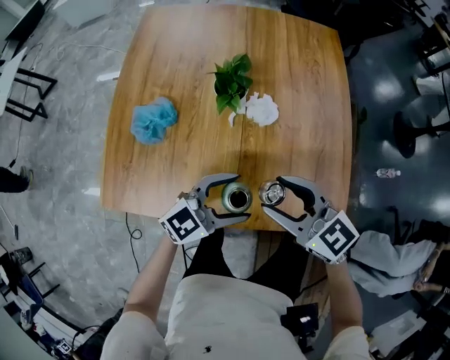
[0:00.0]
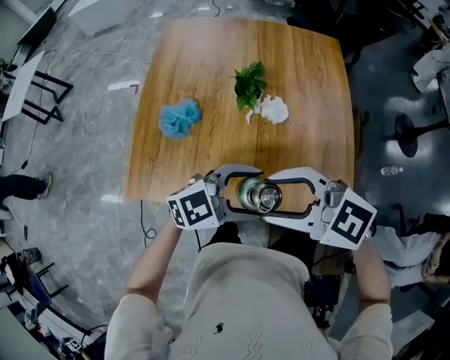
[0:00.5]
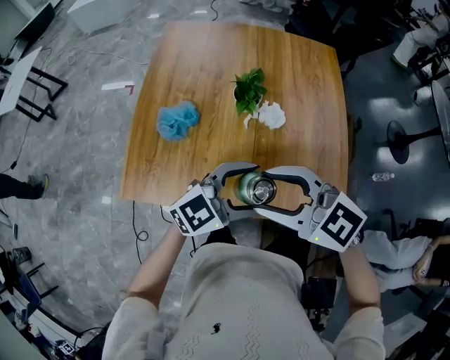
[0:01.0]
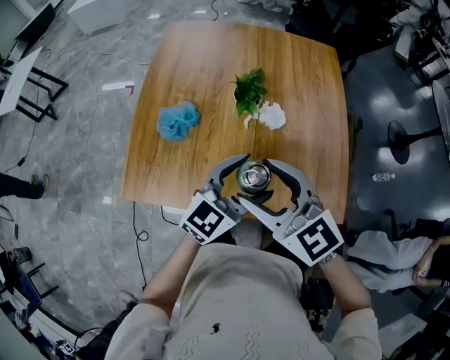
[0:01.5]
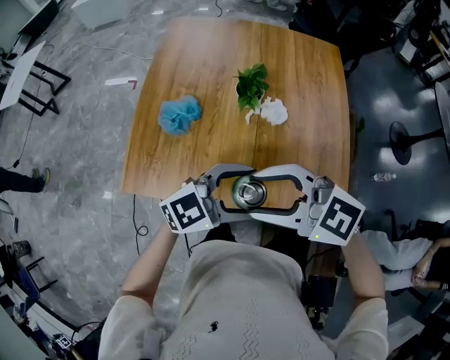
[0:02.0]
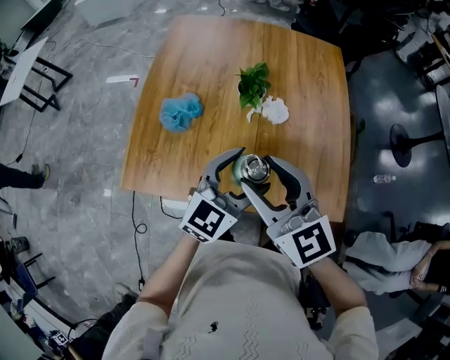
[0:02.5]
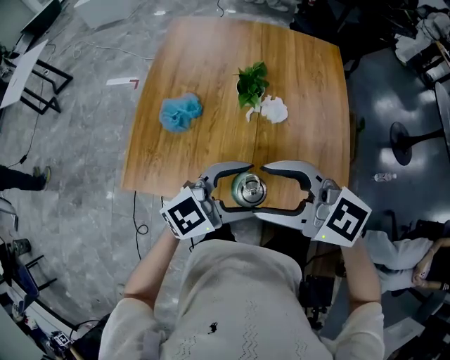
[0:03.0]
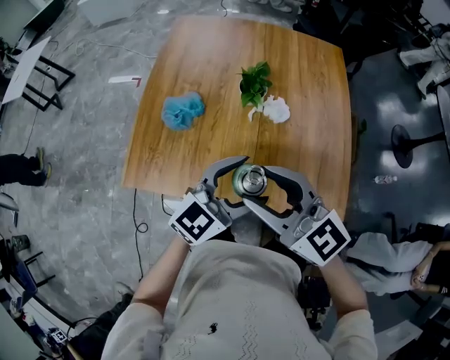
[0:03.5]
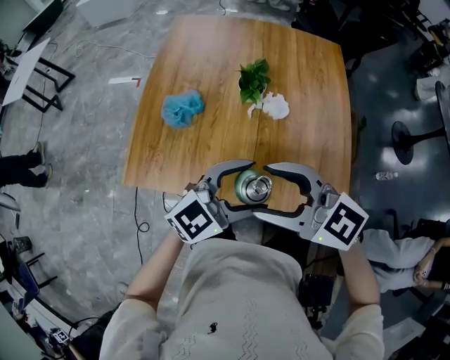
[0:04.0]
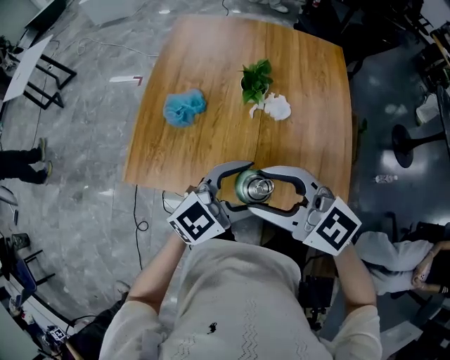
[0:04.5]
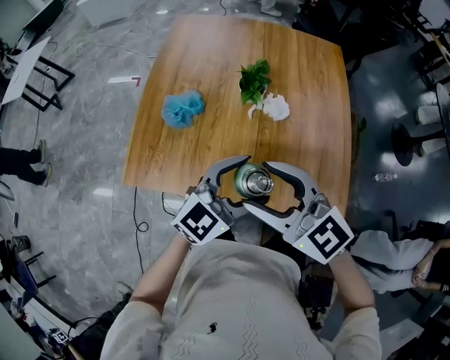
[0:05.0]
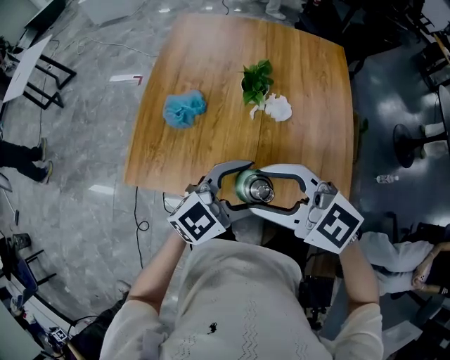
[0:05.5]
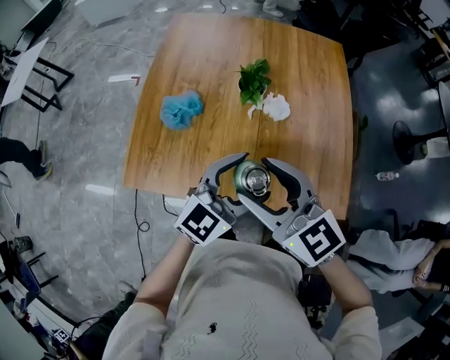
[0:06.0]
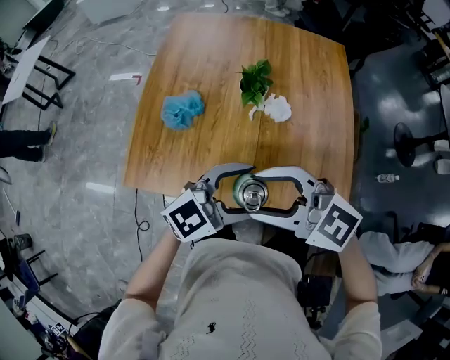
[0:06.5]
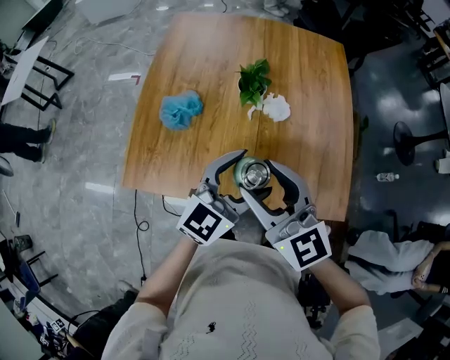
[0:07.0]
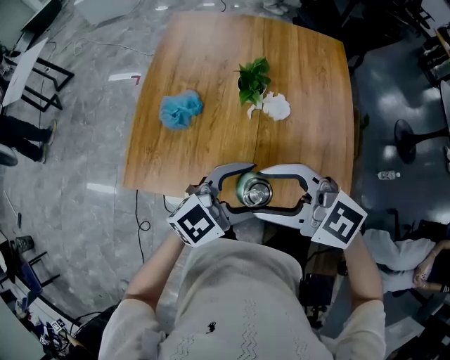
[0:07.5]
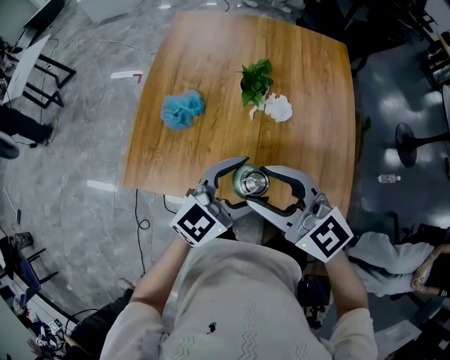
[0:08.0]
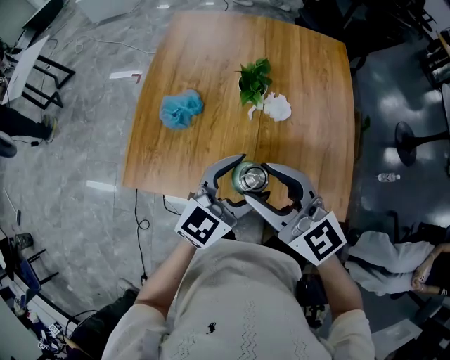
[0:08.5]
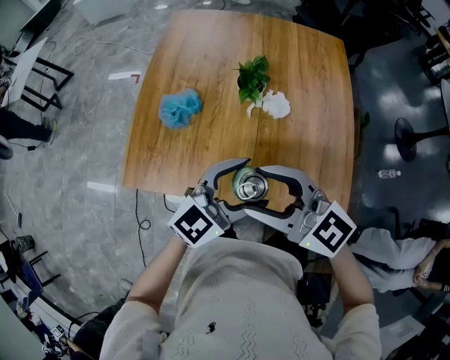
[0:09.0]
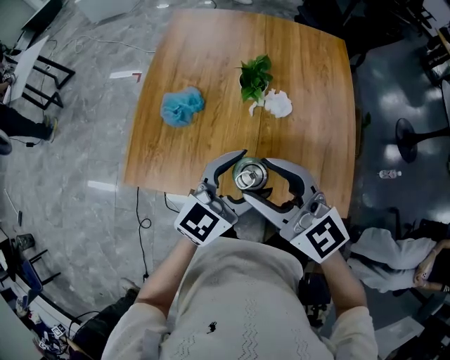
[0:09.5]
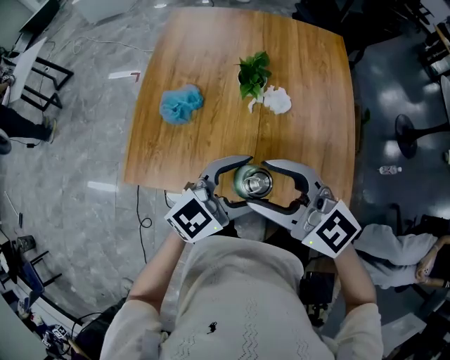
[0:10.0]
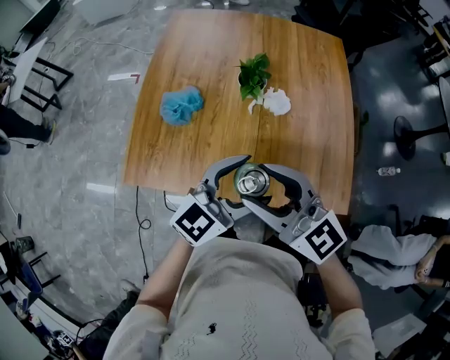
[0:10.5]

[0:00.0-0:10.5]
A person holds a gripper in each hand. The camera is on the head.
0:00.0 to 0:02.0: The left gripper moves upward, roughly 10 cm; the right gripper shifts by about 20 cm, and turns by approximately 30 degrees.
0:06.5 to 0:08.5: The right gripper changes its angle by approximately 30 degrees. Meanwhile the left gripper changes its angle by about 20 degrees.

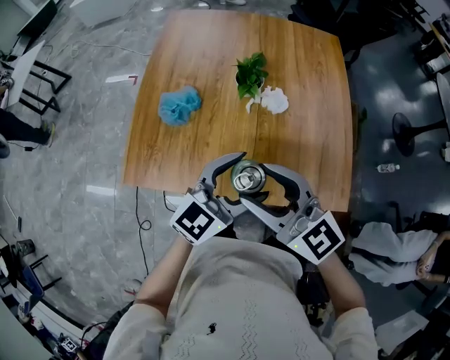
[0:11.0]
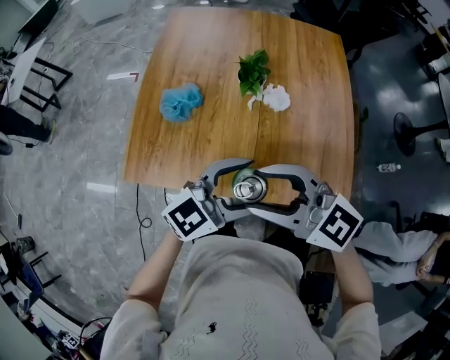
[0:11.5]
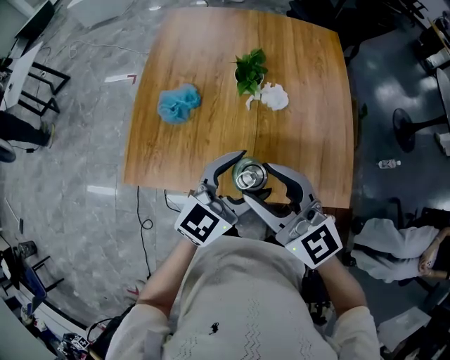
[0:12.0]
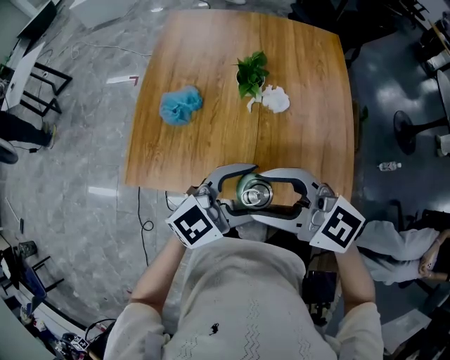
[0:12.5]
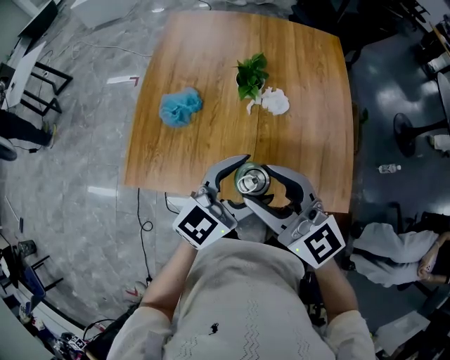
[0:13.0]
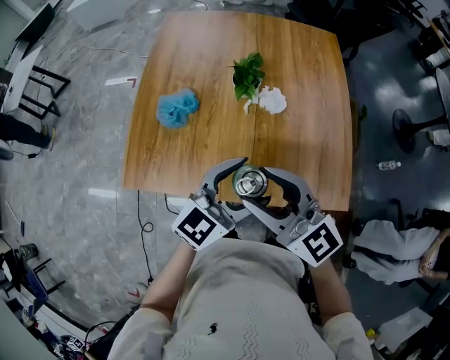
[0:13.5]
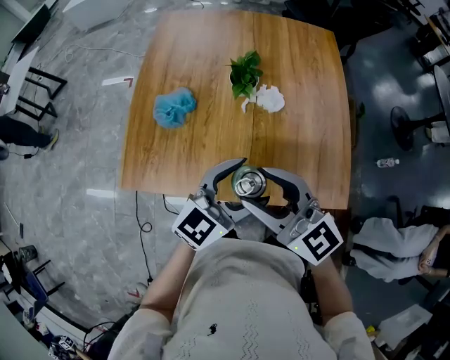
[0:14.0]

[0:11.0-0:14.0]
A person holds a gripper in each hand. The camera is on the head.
0:11.0 to 0:12.5: The right gripper turns by approximately 20 degrees.
0:12.5 to 0:14.0: The right gripper rotates about 20 degrees.

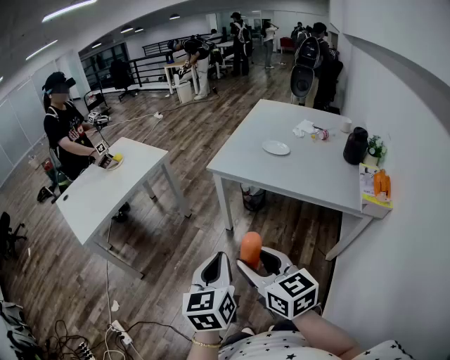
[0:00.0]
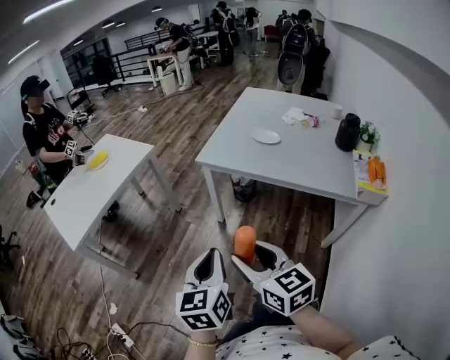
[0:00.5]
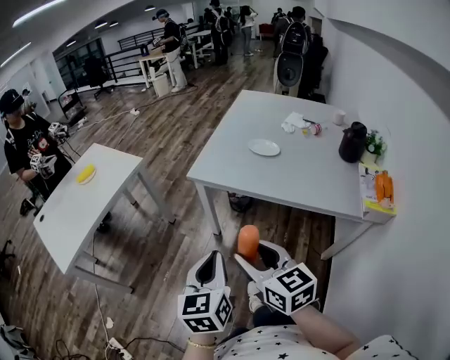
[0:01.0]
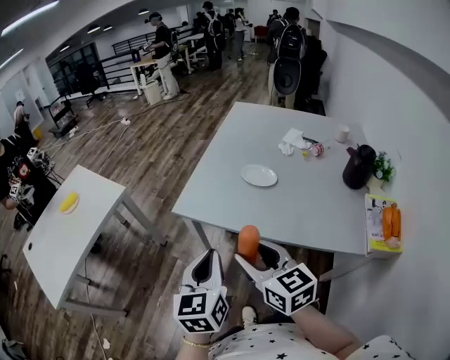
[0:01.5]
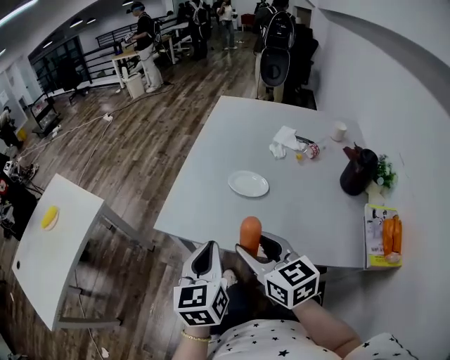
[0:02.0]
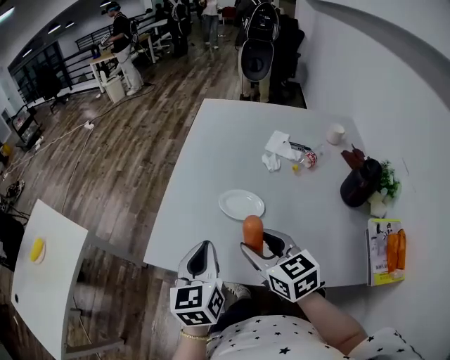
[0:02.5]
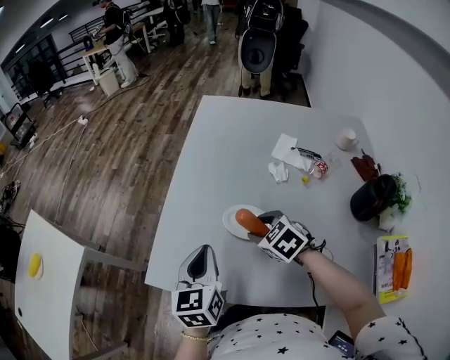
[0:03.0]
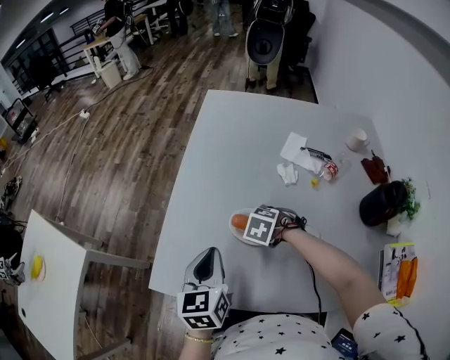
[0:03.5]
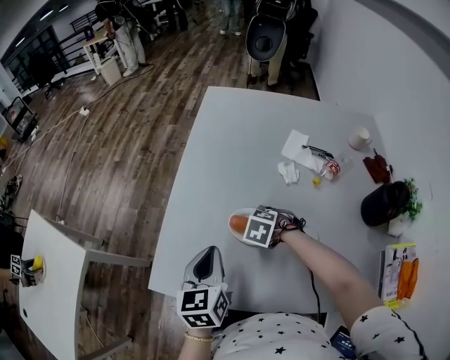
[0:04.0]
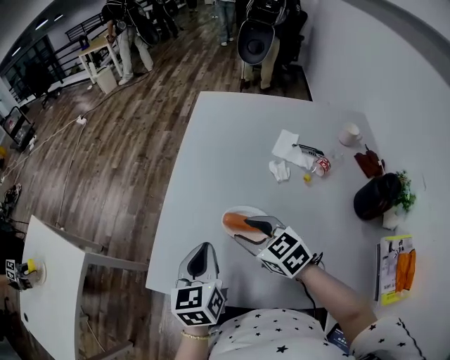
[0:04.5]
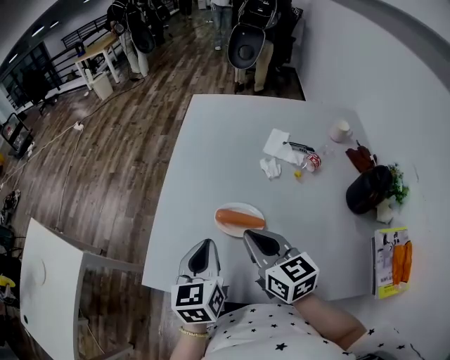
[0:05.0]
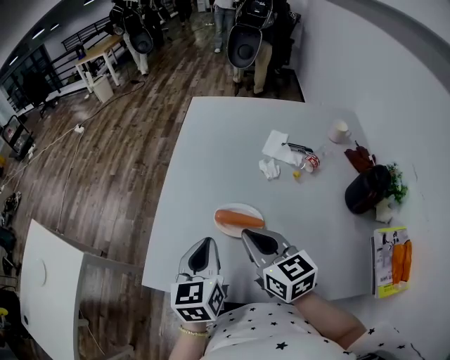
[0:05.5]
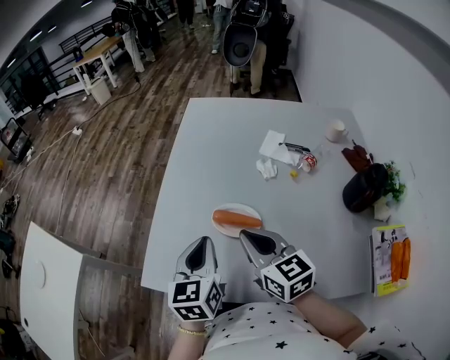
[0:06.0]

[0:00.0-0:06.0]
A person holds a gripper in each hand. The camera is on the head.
0:00.0 to 0:02.0: The pair of grippers is taken forward and to the right, roughly 50 cm.
0:02.0 to 0:04.0: The right gripper changes place by approximately 40 cm, and tilts its fingers some 60 degrees downward. The left gripper changes place by about 25 cm.
0:04.0 to 0:06.0: The right gripper is displaced upward by some 20 cm, tips its fingers upward by some 60 degrees, and closes, while the left gripper changes place by roughly 5 cm.

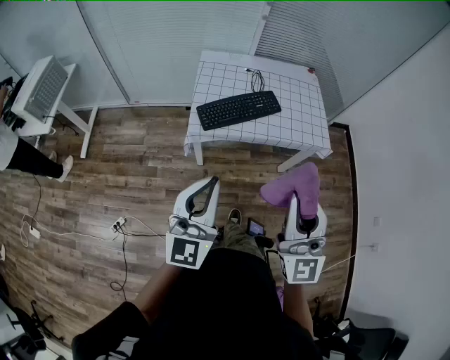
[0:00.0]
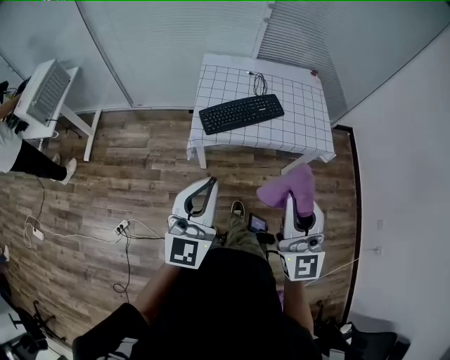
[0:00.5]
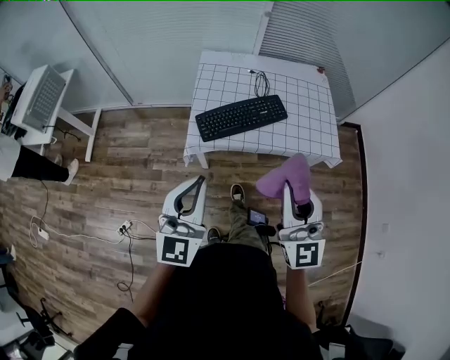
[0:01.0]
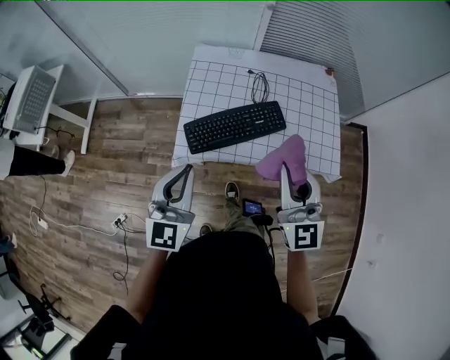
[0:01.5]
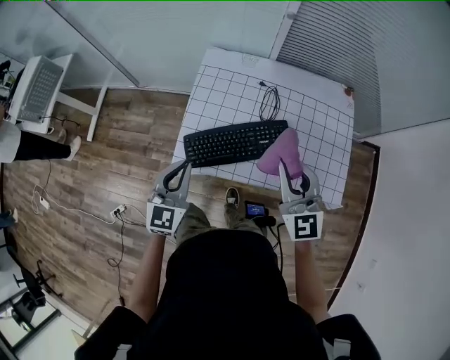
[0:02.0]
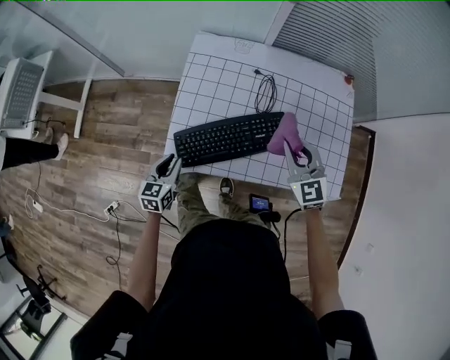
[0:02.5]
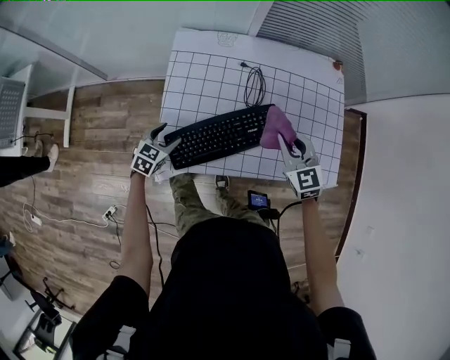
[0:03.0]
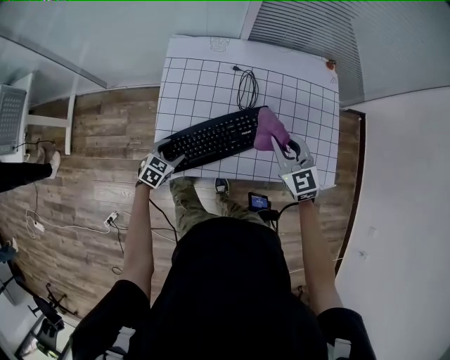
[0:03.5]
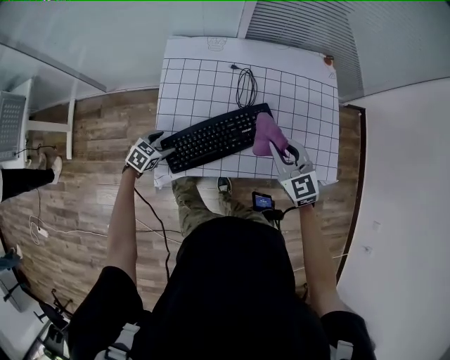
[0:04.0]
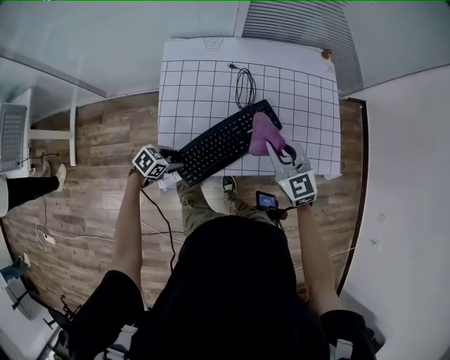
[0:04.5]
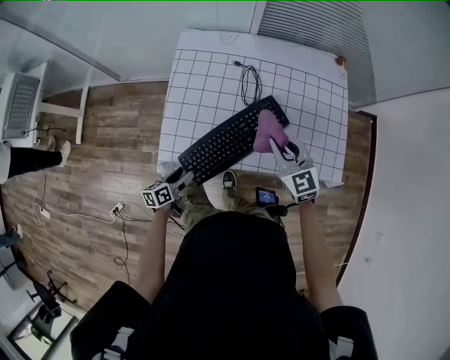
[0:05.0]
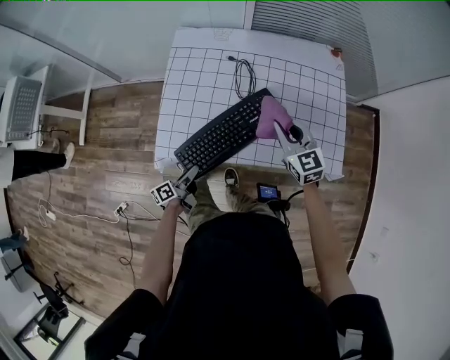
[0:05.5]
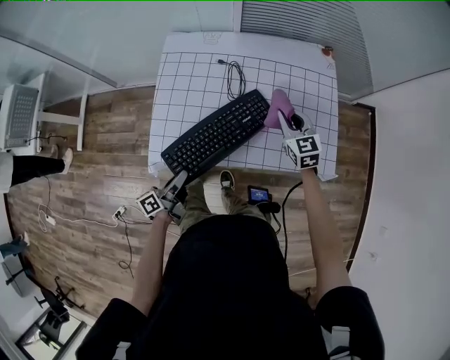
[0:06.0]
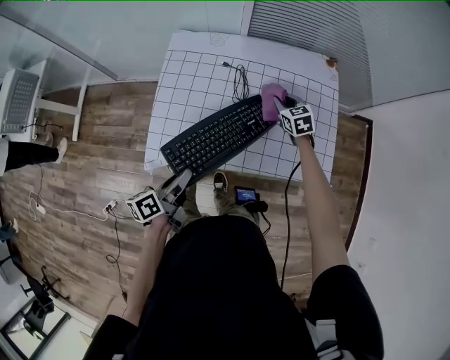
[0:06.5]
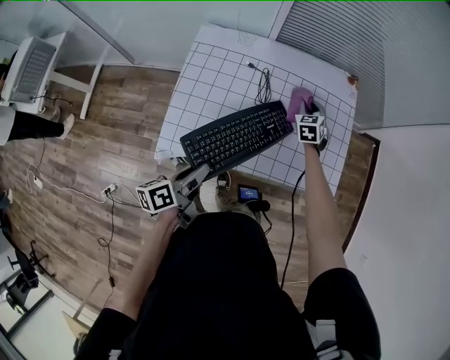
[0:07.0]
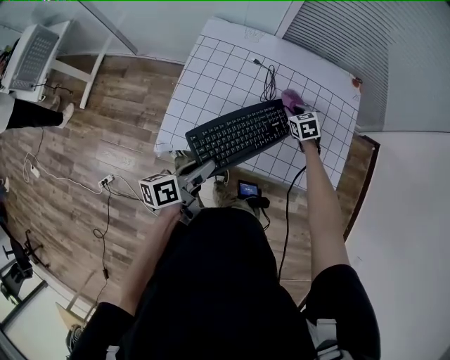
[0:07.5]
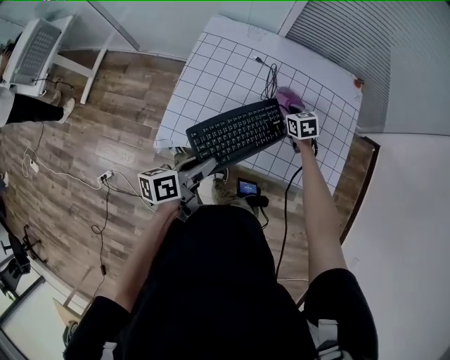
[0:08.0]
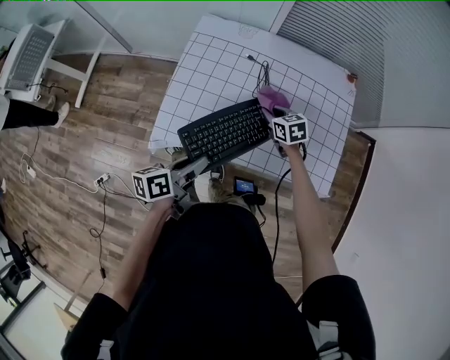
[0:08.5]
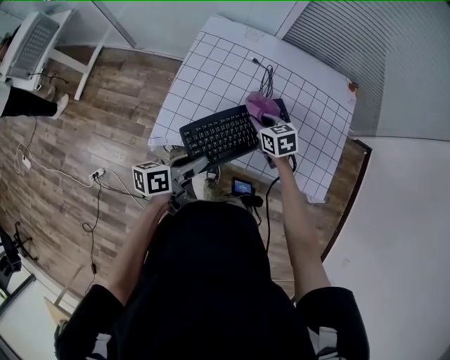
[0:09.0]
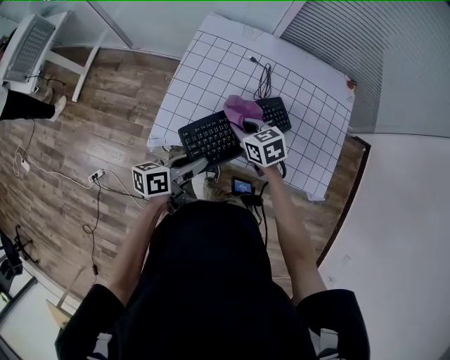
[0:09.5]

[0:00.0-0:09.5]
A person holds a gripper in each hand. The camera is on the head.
0:00.0 to 0:02.0: The left gripper moves forward and downward, roughly 40 cm, and changes its angle by roughly 30 degrees, while the right gripper shifts some 40 cm forward, and swivels about 30 degrees.
0:02.0 to 0:04.0: The left gripper goes roughly 30 cm downward, points its fingers roughly 40 degrees further downward, and opens up. The right gripper moves downward and forward, approximately 15 cm.
0:04.0 to 0:05.5: The left gripper moves approximately 20 cm, twists approximately 70 degrees counterclockwise, seen from behind, and closes.
0:05.5 to 0:07.5: The right gripper moves downward and forward, about 20 cm, and tips its fingers downward by about 30 degrees, while the left gripper shifts roughly 20 cm upward.
0:07.5 to 0:09.5: The right gripper moves to the left, backward and upward, some 25 cm, and rotates about 20 degrees.
